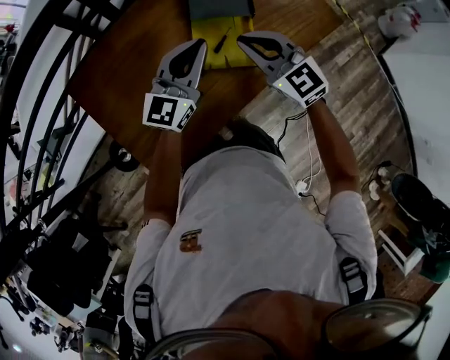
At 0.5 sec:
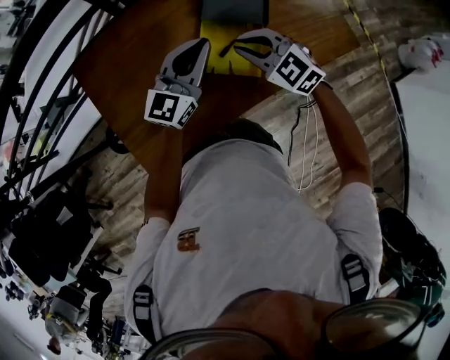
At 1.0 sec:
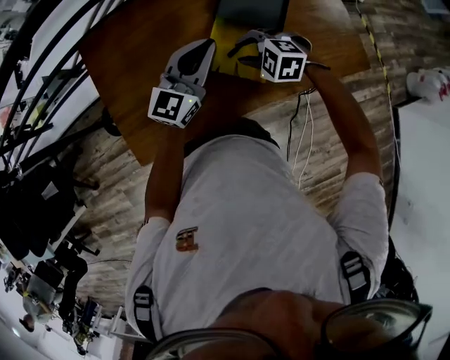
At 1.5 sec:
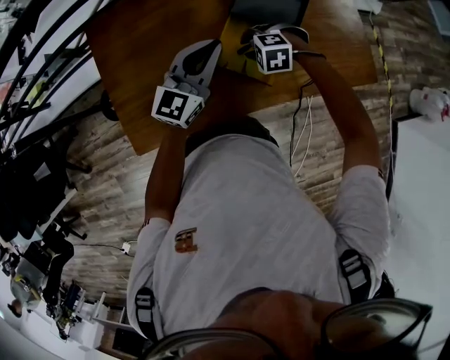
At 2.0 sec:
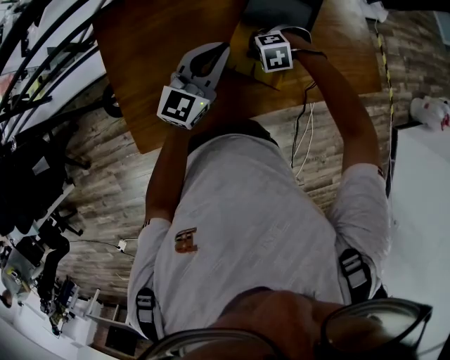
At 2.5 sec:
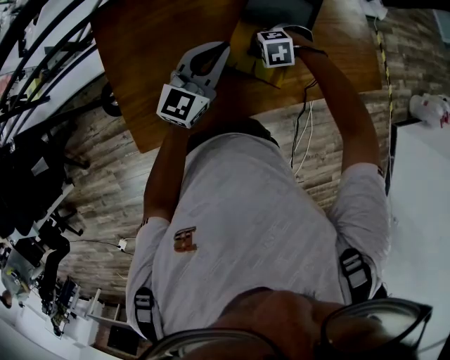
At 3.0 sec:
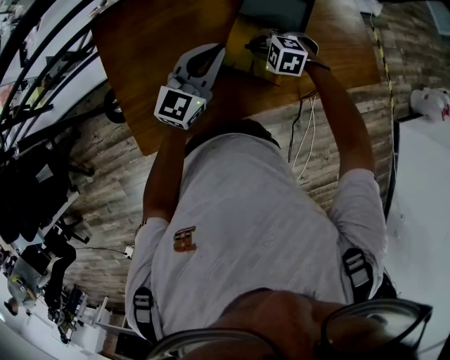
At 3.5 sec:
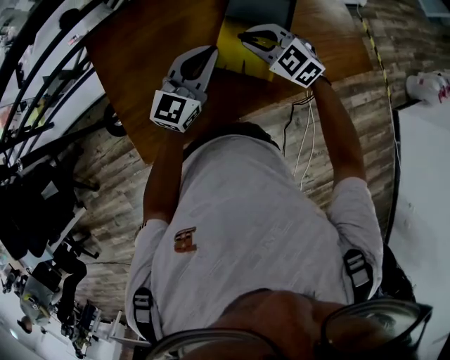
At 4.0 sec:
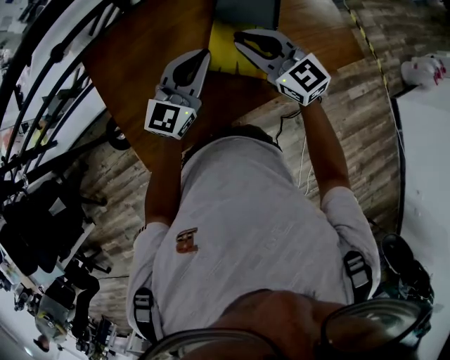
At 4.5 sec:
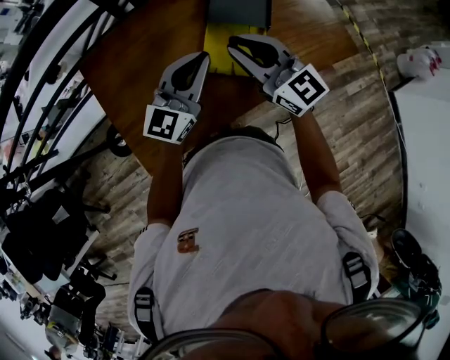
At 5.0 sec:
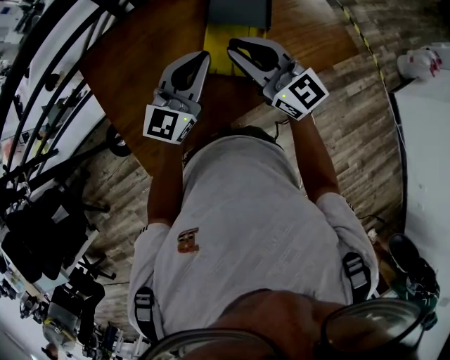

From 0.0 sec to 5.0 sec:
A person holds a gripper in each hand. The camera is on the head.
From 0.0 sec to 2.5 sec: The right gripper moves downward, some 25 cm, and angles its fingers downward, by approximately 60 degrees. The left gripper shifts about 5 cm downward.
From 2.5 sec to 5.0 sec: The right gripper is displaced upward by roughly 30 cm, and tilts its fingers roughly 80 degrees upward. The left gripper goes approximately 10 cm upward.

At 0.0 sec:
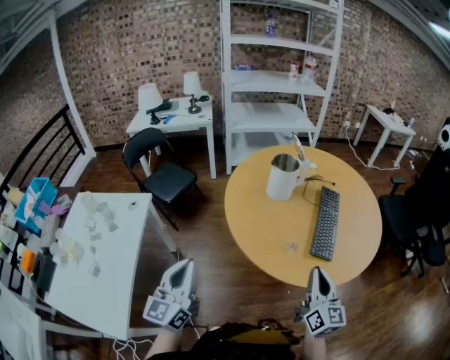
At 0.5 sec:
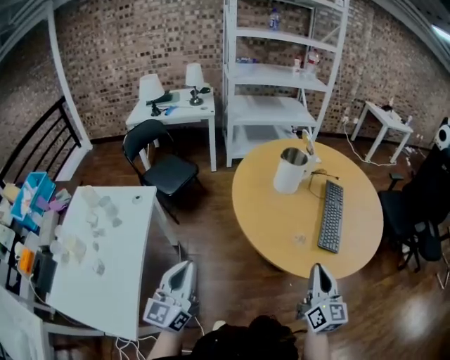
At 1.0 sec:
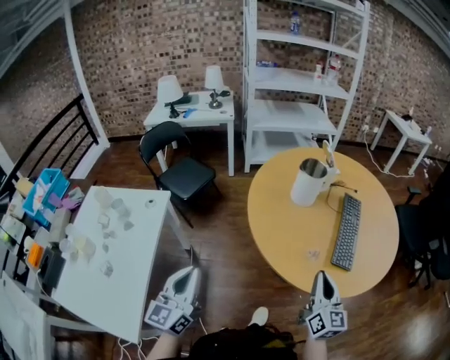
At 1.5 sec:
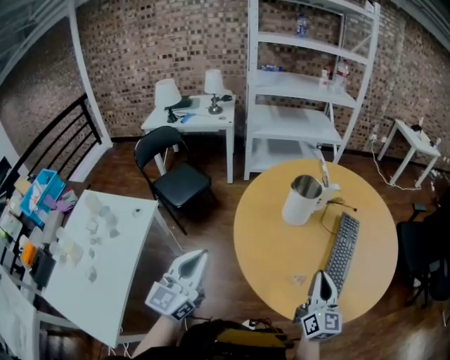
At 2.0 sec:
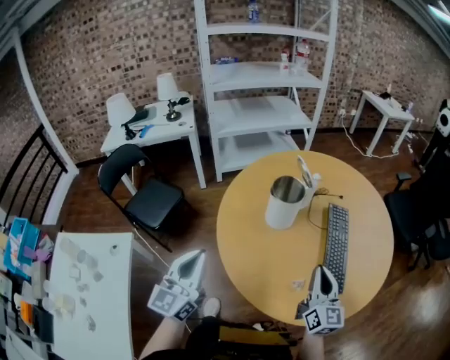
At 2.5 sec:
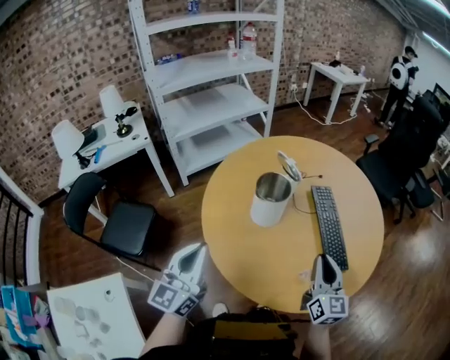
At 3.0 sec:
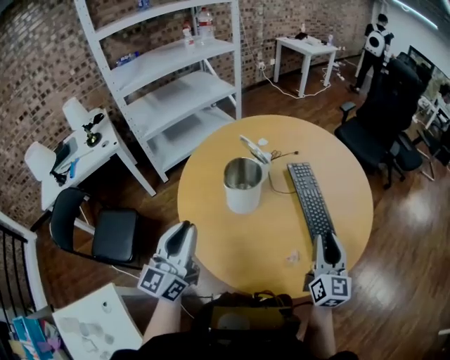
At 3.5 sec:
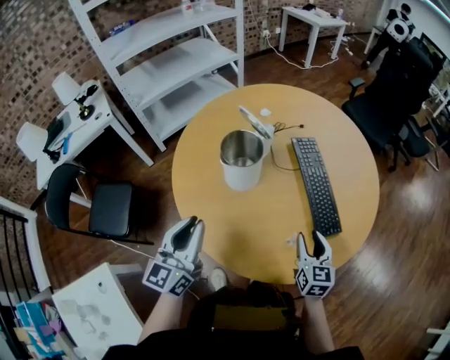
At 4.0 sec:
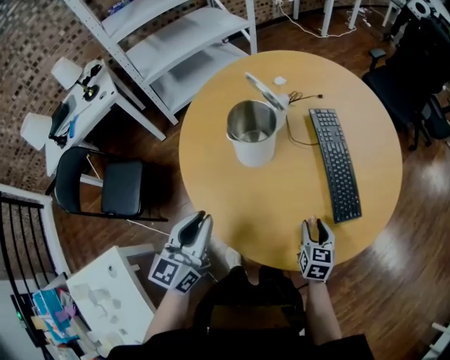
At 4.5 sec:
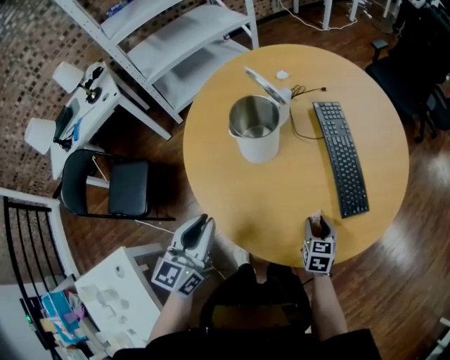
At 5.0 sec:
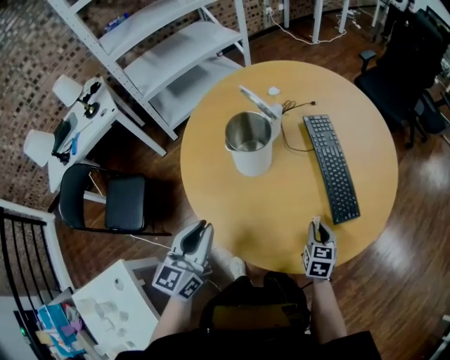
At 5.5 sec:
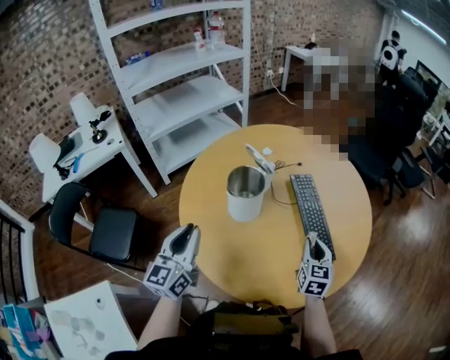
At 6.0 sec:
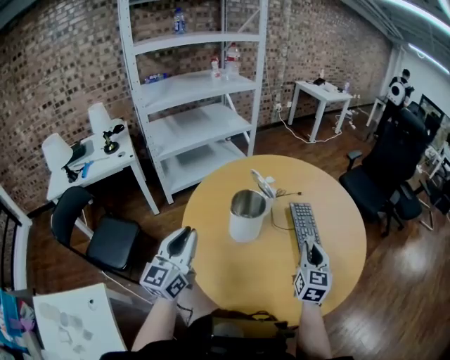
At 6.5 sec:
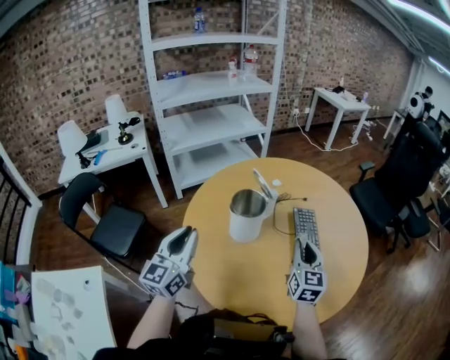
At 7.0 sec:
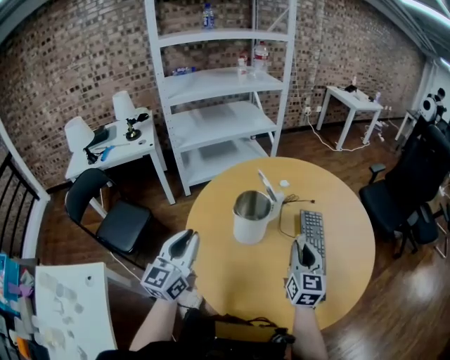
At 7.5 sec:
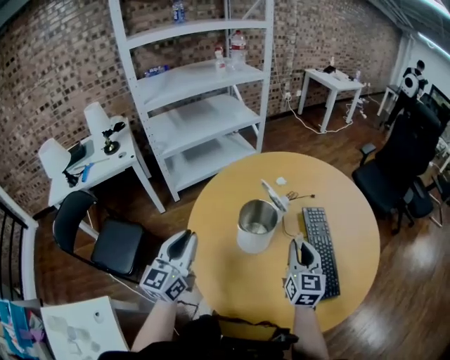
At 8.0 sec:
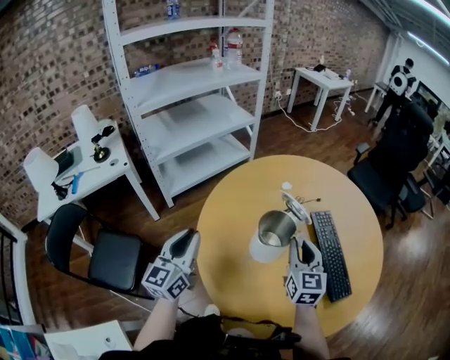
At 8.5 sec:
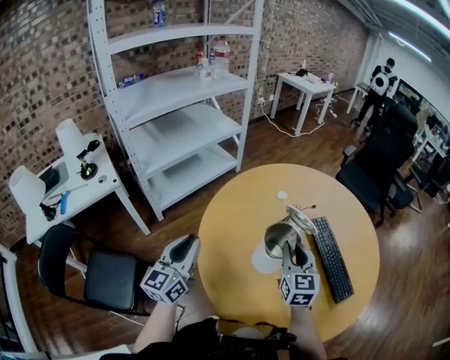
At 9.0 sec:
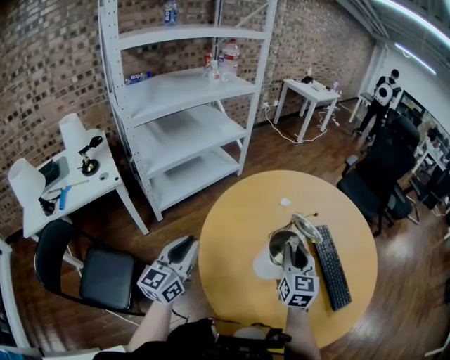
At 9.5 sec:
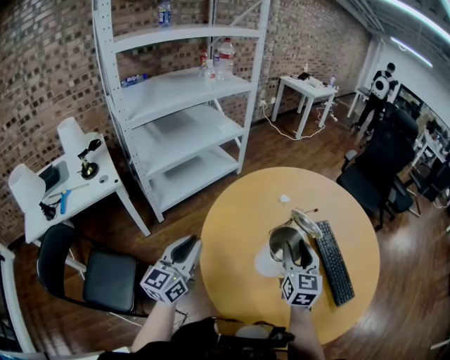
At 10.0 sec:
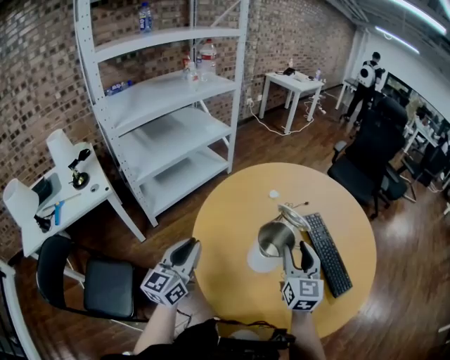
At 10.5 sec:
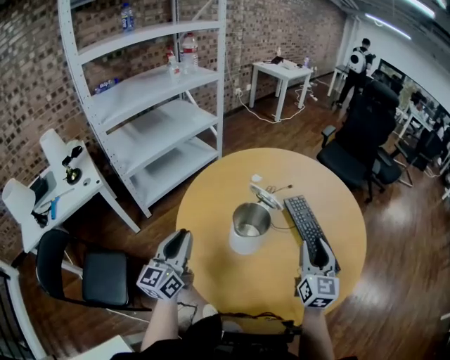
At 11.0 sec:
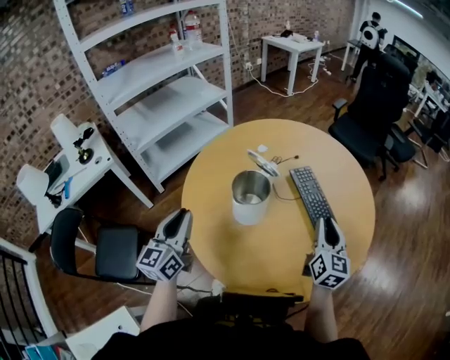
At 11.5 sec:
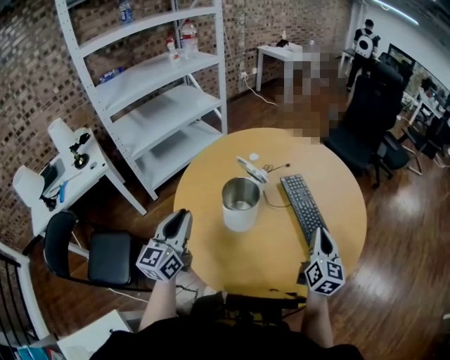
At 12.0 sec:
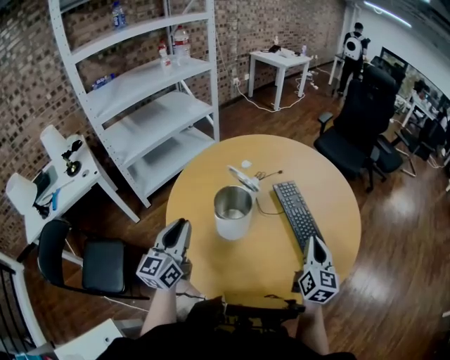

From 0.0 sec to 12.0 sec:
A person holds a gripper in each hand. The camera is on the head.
From 0.0 sec to 2.0 sec: The two grippers go approximately 20 cm forward.
From 2.0 sec to 4.0 sec: The right gripper is displaced downward by approximately 20 cm, tips its fingers downward by about 40 degrees, and opens; the left gripper ends up approximately 15 cm from where it was, and turns by roughly 30 degrees.
From 4.0 sec to 6.0 sec: The left gripper is displaced upward and to the left by about 10 cm. The right gripper moves upward and forward, about 25 cm, turns by approximately 30 degrees, and closes its fingers.
From 6.0 sec to 8.0 sec: The right gripper heads to the left and forward, covering roughly 20 cm; the left gripper heads forward and to the left, covering approximately 15 cm.
From 8.0 sec to 10.0 sec: The right gripper opens up.
From 10.0 sec to 12.0 sec: The right gripper travels to the right by about 25 cm, and closes. The left gripper is displaced to the right by approximately 15 cm.

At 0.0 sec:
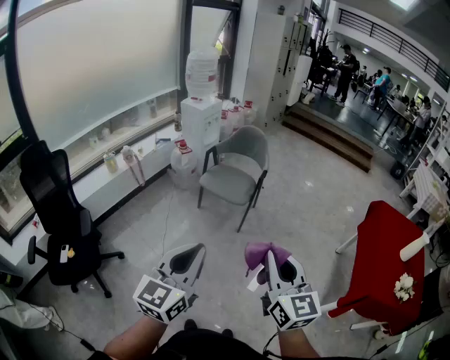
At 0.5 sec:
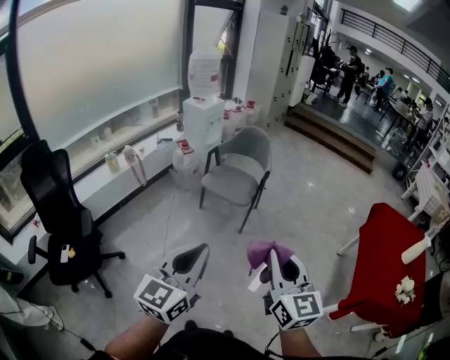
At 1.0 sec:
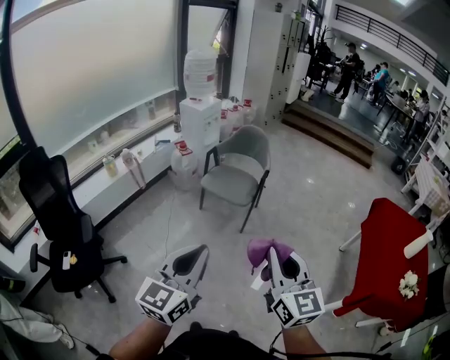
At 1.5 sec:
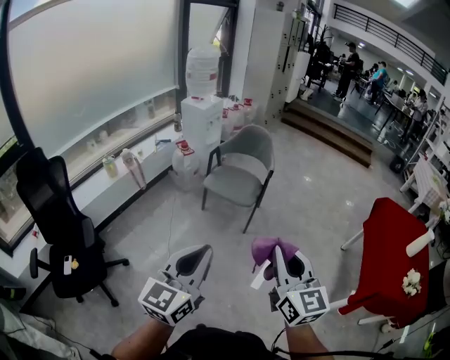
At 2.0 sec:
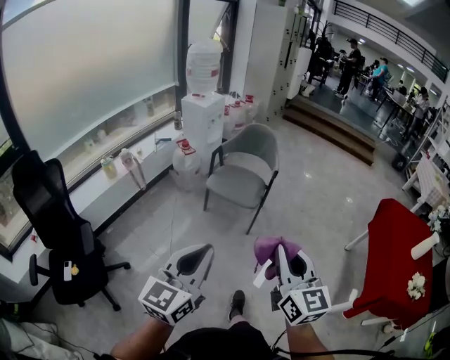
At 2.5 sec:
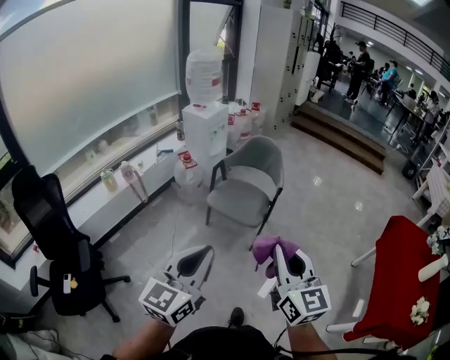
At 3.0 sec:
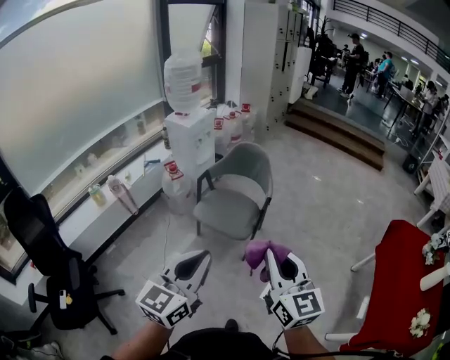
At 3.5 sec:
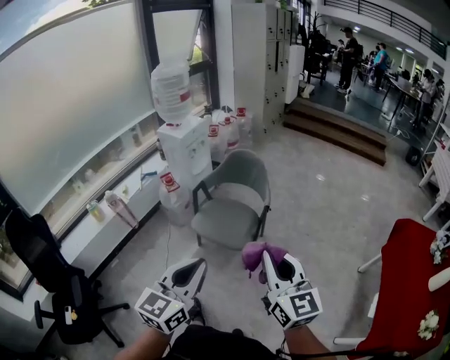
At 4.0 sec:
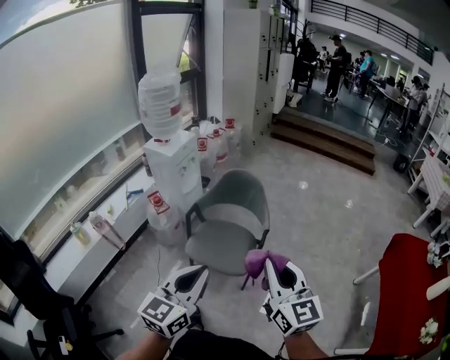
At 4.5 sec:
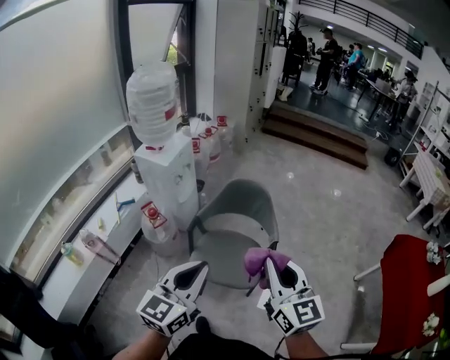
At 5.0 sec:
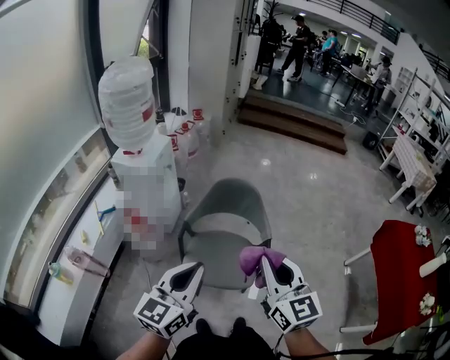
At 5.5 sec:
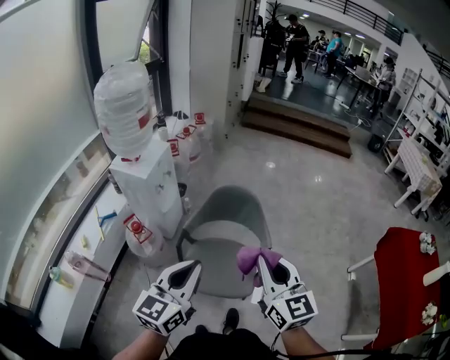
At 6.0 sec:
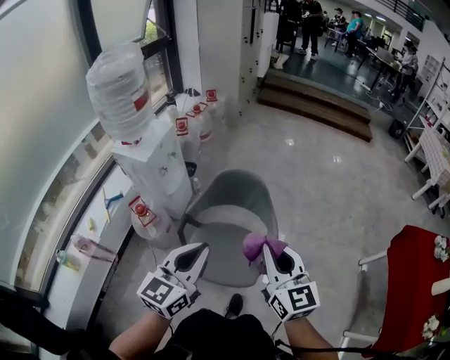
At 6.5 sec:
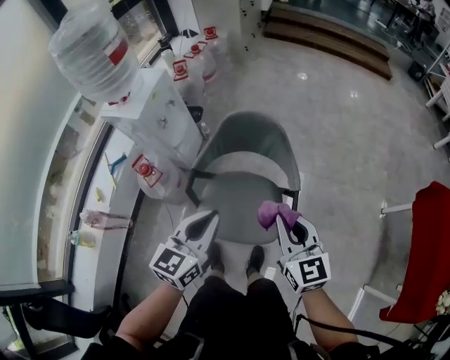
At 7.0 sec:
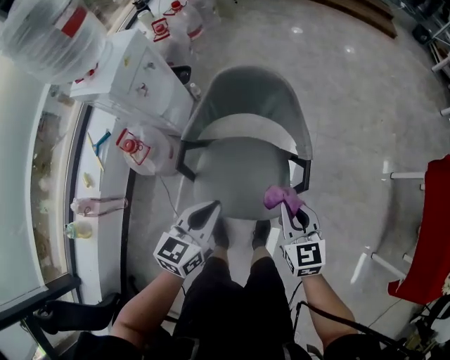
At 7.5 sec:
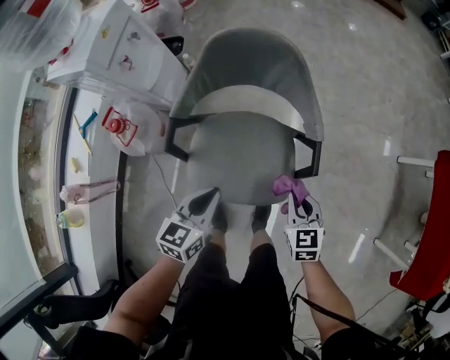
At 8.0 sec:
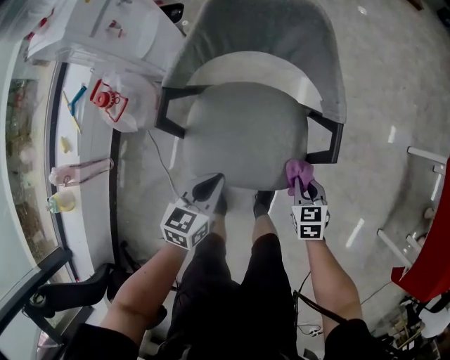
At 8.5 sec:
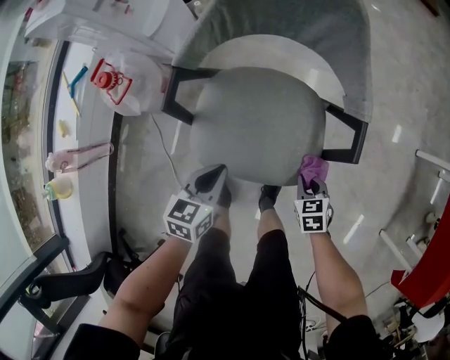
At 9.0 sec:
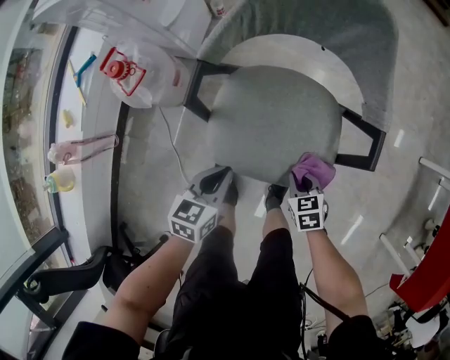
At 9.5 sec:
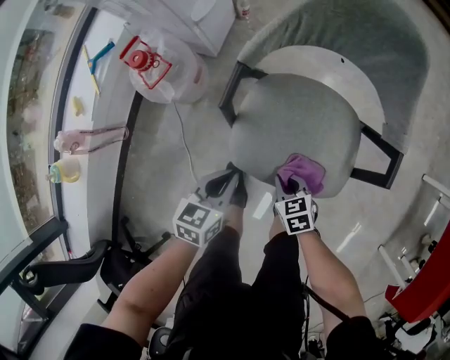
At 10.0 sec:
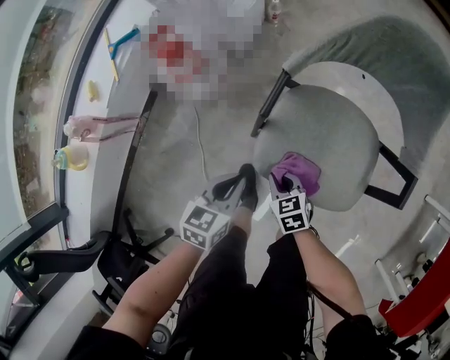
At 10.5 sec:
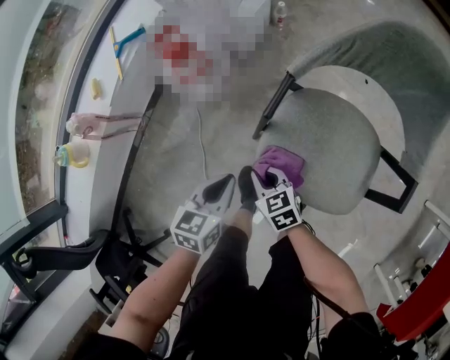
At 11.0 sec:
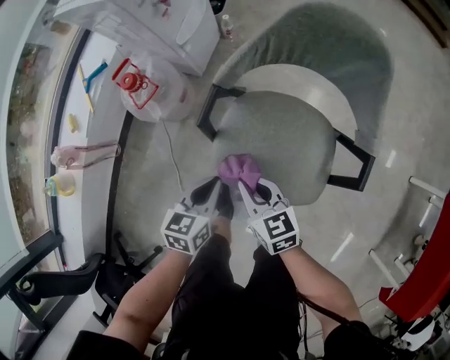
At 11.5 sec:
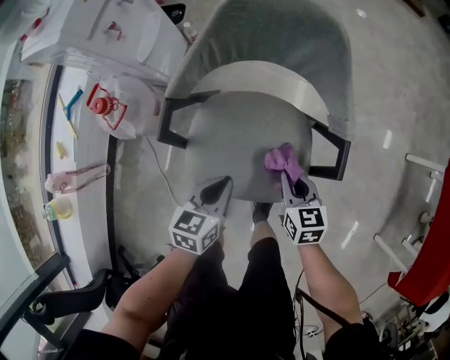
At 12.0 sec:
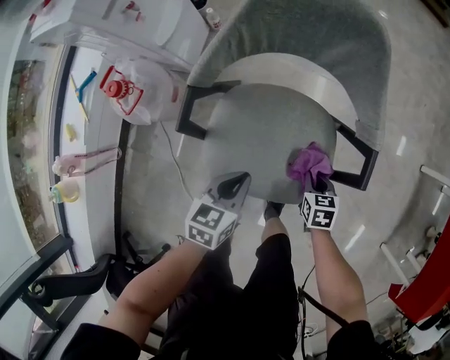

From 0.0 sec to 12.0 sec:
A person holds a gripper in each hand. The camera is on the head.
From 0.0 sec to 2.0 sec: Both grippers move forward and to the left, some 10 cm.
From 2.0 sec to 4.0 sec: The two grippers travel together, forward, approximately 40 cm.
From 4.0 sec to 6.0 sec: Both grippers travel together forward, roughly 25 cm.
From 6.0 sec to 8.0 sec: Both grippers move downward, some 50 cm. The right gripper points its fingers some 50 degrees further downward. Meanwhile the left gripper tips its fingers downward by approximately 30 degrees.
From 8.0 sec to 10.0 sec: The left gripper changes place by approximately 20 cm. The right gripper ends up roughly 35 cm from where it was, and rotates some 30 degrees.
From 10.0 sec to 12.0 sec: The right gripper travels upward and back again, some 15 cm each way, and turns by approximately 40 degrees; the left gripper ends up about 20 cm from where it was.
